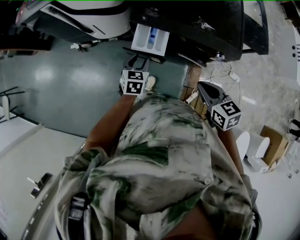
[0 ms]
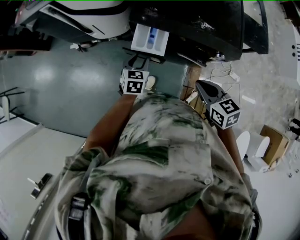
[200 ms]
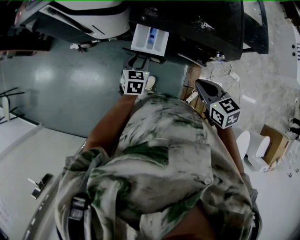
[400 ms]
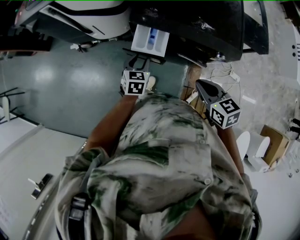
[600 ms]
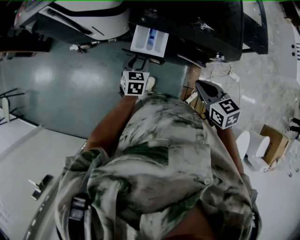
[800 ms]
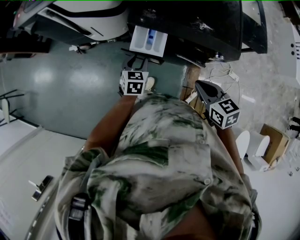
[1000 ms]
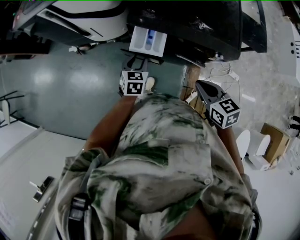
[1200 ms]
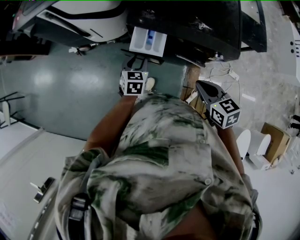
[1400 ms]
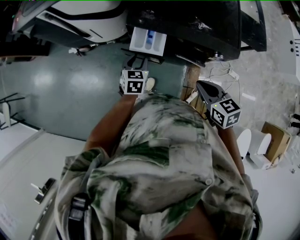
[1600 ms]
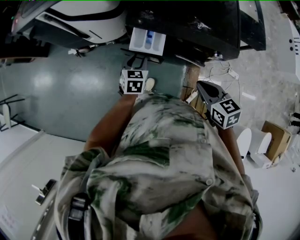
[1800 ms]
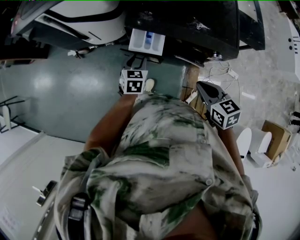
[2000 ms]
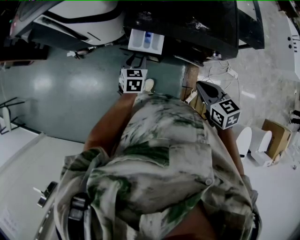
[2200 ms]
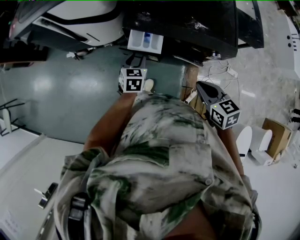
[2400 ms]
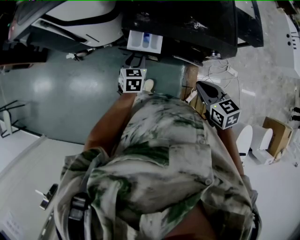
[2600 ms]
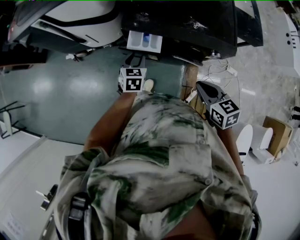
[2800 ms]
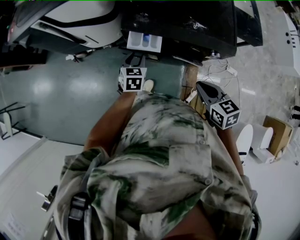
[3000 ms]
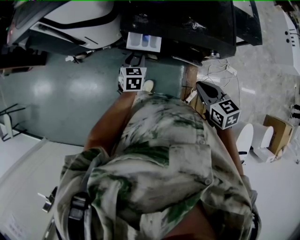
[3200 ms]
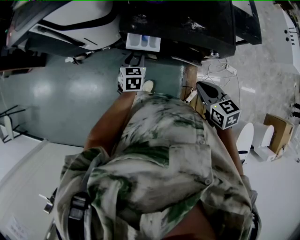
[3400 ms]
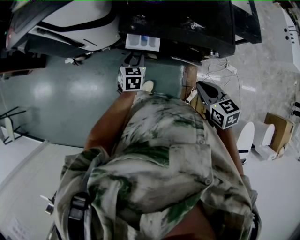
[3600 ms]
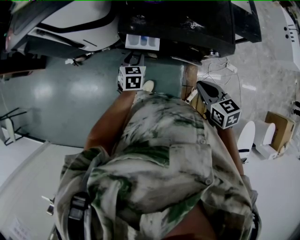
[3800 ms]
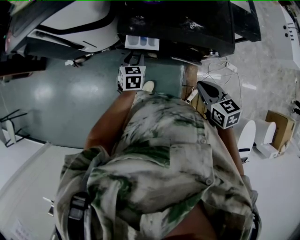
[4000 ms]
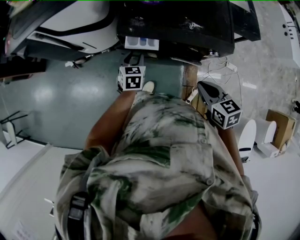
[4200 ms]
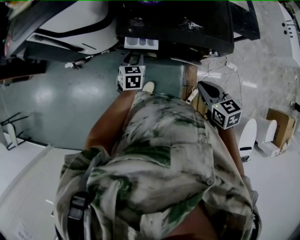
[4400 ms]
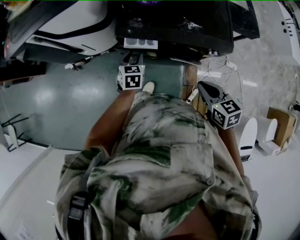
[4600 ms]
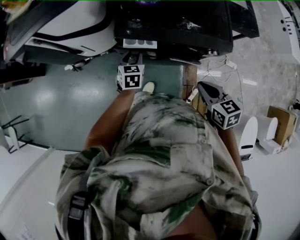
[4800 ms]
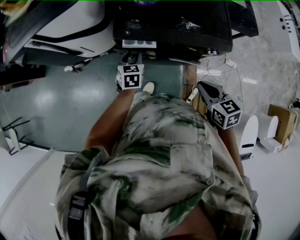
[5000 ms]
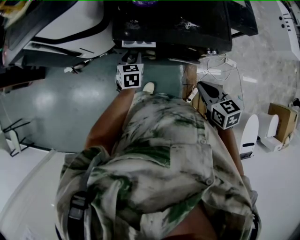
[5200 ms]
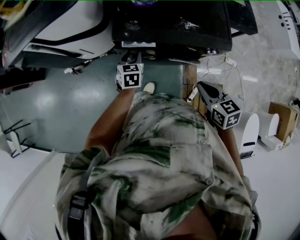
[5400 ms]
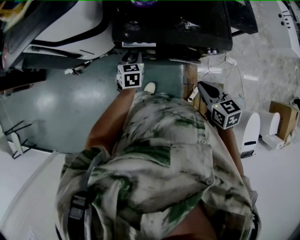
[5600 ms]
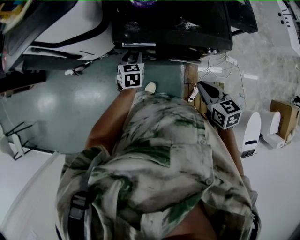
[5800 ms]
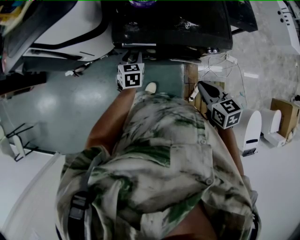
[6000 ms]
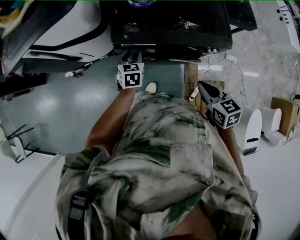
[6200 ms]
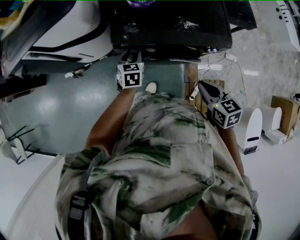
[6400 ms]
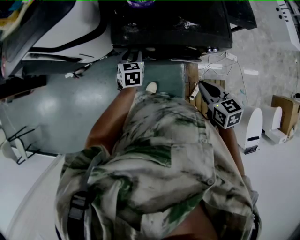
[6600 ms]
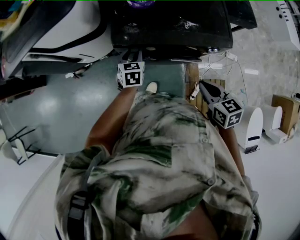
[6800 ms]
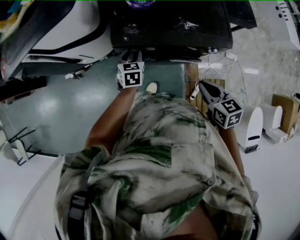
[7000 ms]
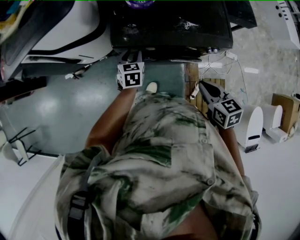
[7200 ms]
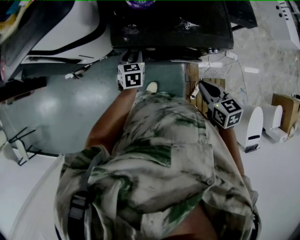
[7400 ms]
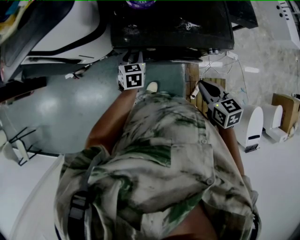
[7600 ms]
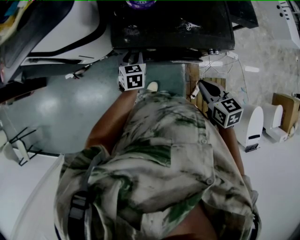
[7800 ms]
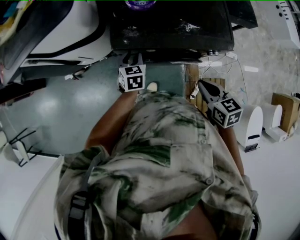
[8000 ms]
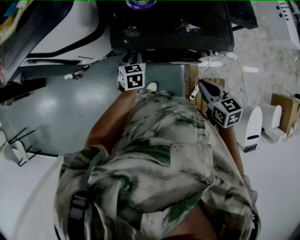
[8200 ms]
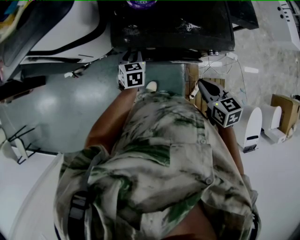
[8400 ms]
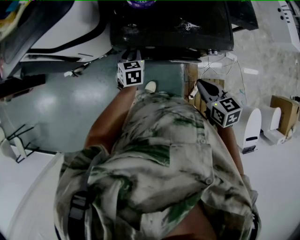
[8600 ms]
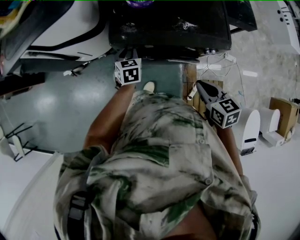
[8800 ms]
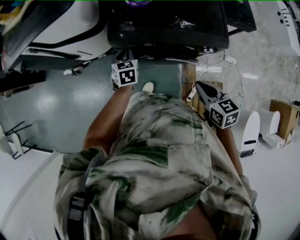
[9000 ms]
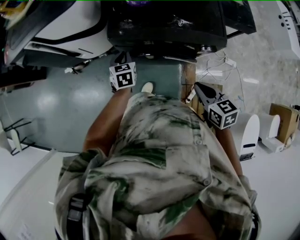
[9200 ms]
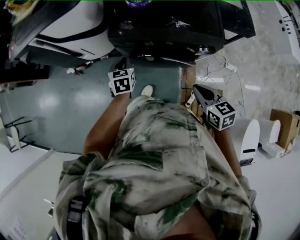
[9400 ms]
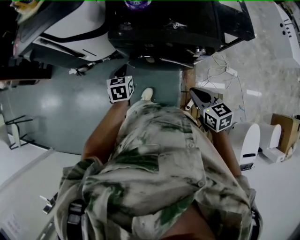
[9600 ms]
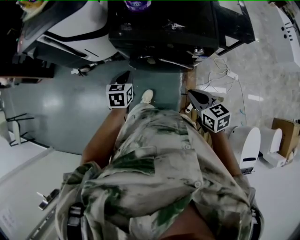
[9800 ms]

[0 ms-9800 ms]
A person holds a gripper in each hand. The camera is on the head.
0 ms to 1400 ms: The two grippers keep their place.
1400 ms to 4200 ms: There are only small adjustments of the grippers.
4200 ms to 5600 ms: The grippers make only small movements.
5600 ms to 8400 ms: The grippers make only small movements.
8400 ms to 9800 ms: The two grippers go about 20 cm backward. The left gripper closes.

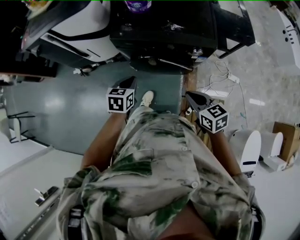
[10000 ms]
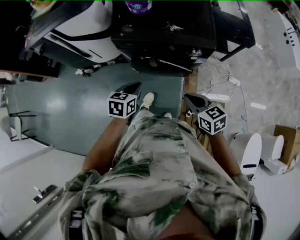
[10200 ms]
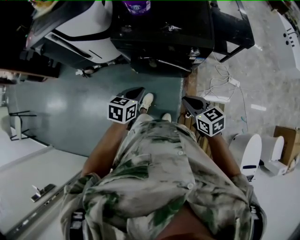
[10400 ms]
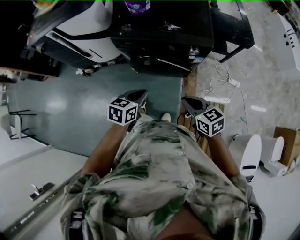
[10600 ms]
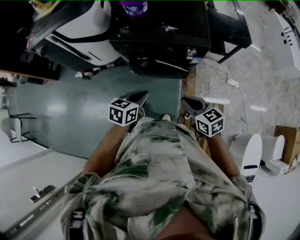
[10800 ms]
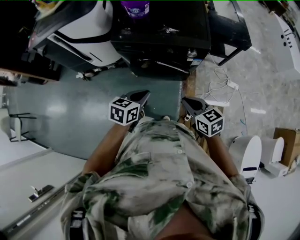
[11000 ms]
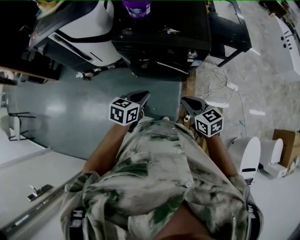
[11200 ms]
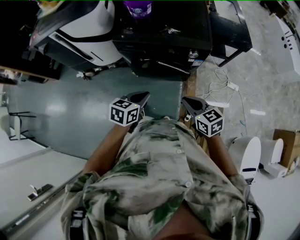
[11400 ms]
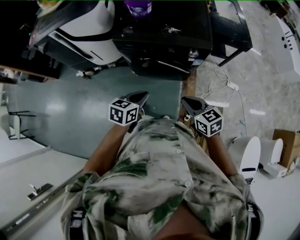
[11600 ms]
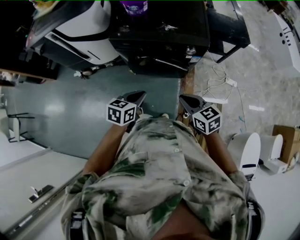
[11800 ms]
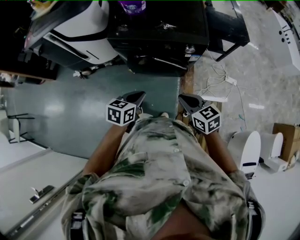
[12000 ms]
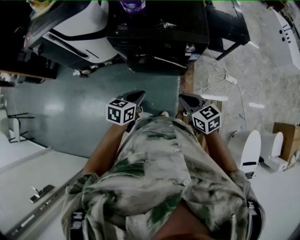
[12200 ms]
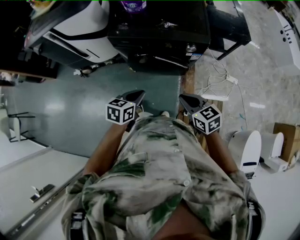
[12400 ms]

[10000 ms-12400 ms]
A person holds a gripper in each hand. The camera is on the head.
10000 ms to 11200 ms: The right gripper shifts approximately 5 cm backward. Meanwhile the left gripper goes about 15 cm backward and to the right.
11200 ms to 12400 ms: There are only small adjustments of the grippers.

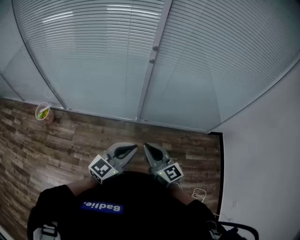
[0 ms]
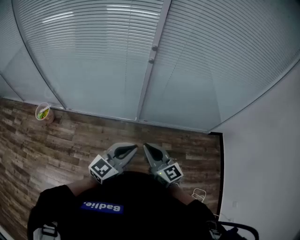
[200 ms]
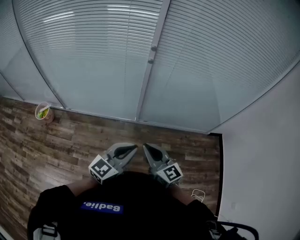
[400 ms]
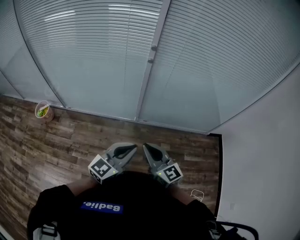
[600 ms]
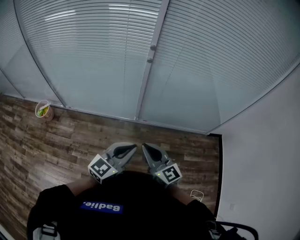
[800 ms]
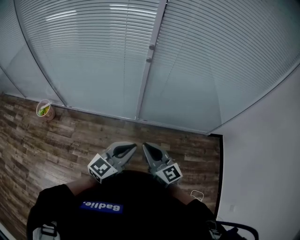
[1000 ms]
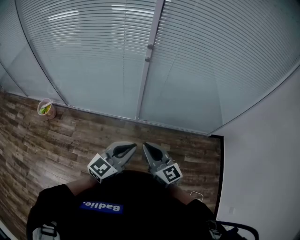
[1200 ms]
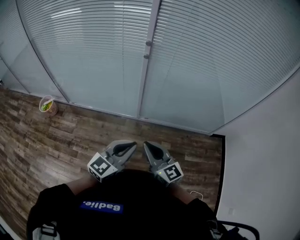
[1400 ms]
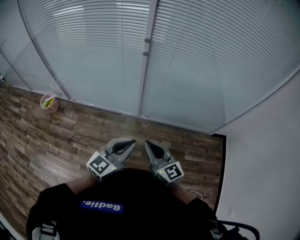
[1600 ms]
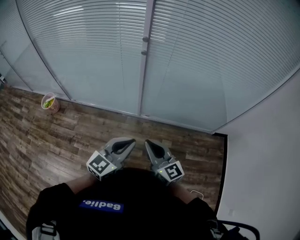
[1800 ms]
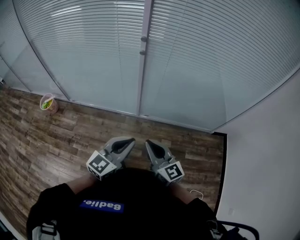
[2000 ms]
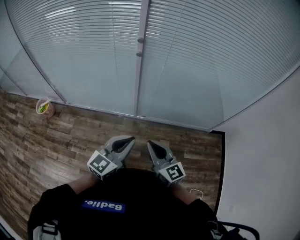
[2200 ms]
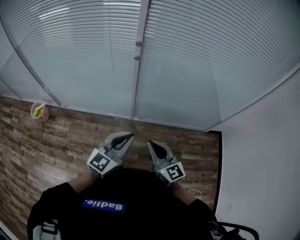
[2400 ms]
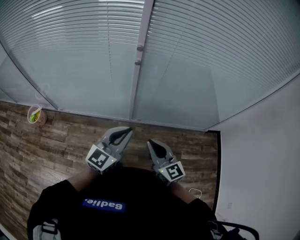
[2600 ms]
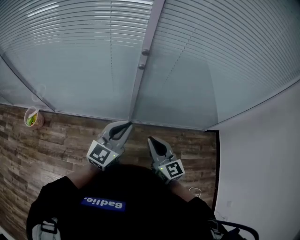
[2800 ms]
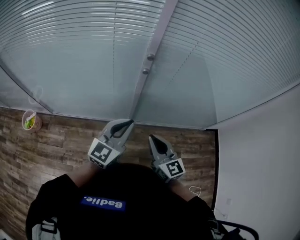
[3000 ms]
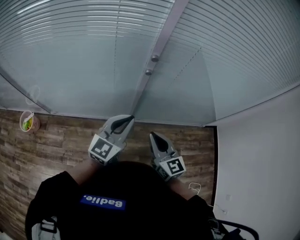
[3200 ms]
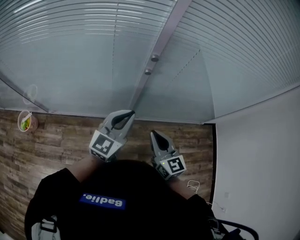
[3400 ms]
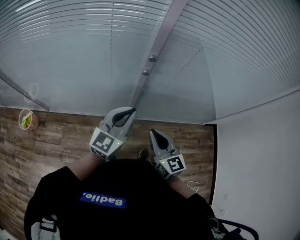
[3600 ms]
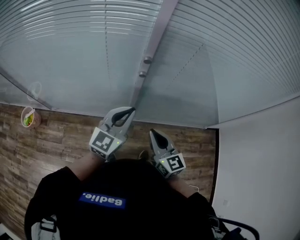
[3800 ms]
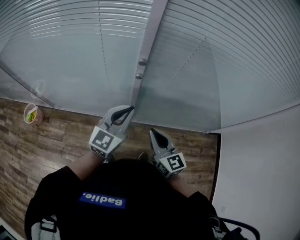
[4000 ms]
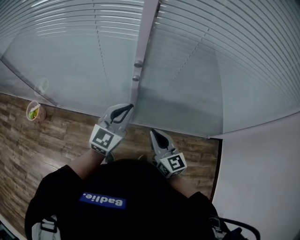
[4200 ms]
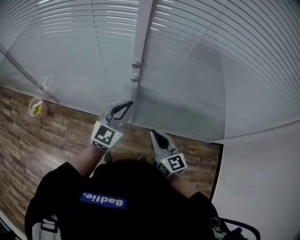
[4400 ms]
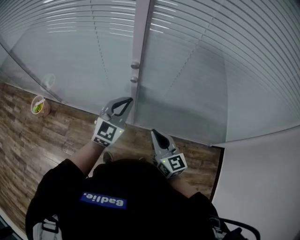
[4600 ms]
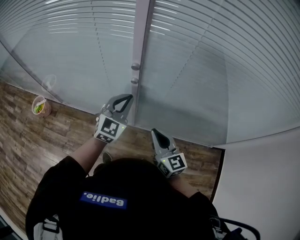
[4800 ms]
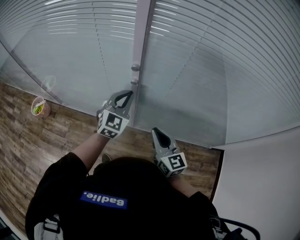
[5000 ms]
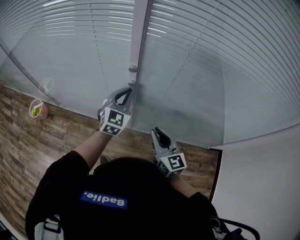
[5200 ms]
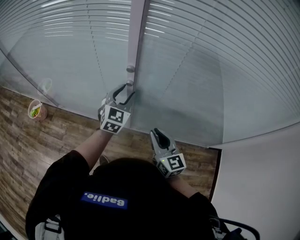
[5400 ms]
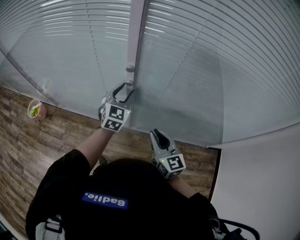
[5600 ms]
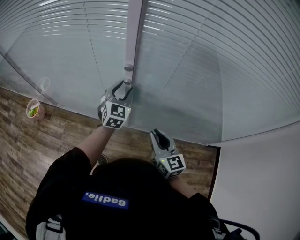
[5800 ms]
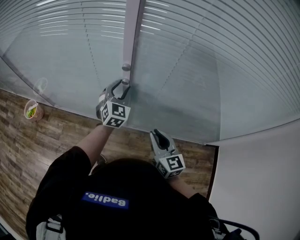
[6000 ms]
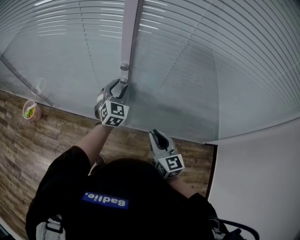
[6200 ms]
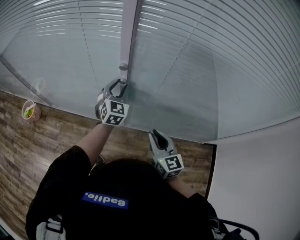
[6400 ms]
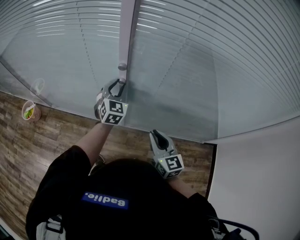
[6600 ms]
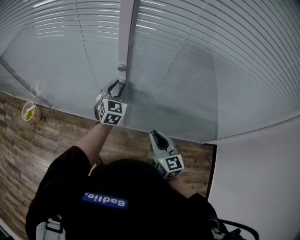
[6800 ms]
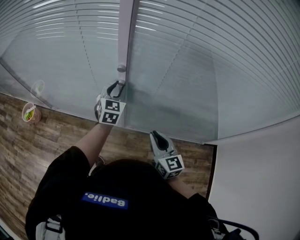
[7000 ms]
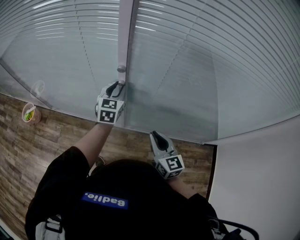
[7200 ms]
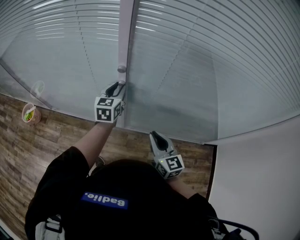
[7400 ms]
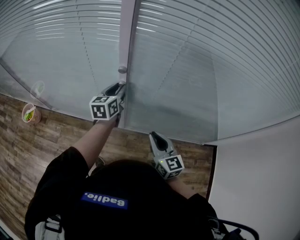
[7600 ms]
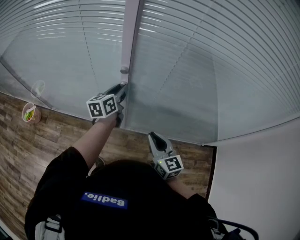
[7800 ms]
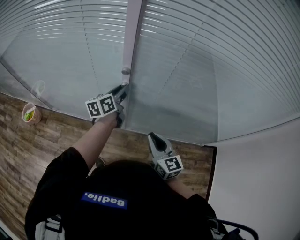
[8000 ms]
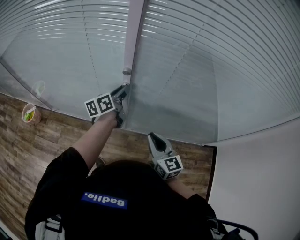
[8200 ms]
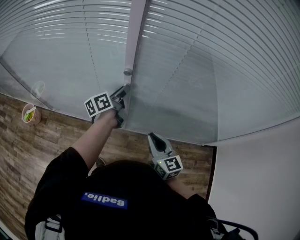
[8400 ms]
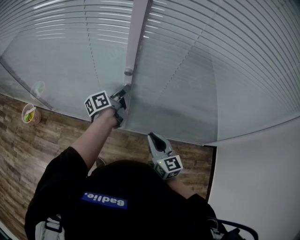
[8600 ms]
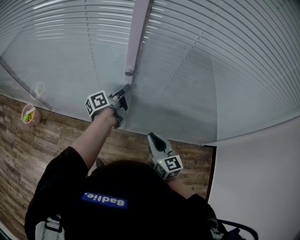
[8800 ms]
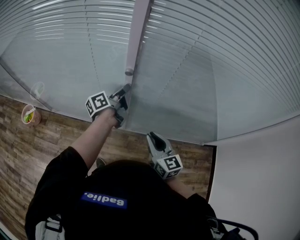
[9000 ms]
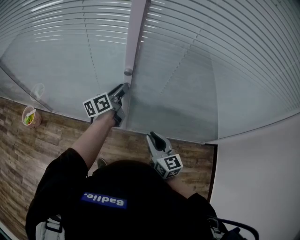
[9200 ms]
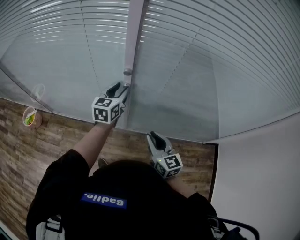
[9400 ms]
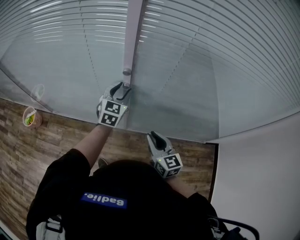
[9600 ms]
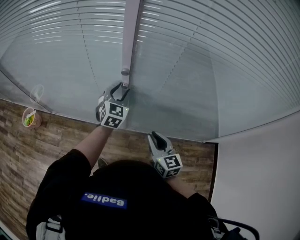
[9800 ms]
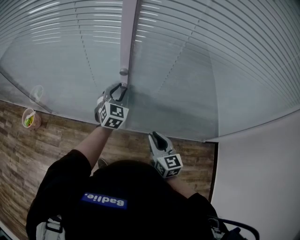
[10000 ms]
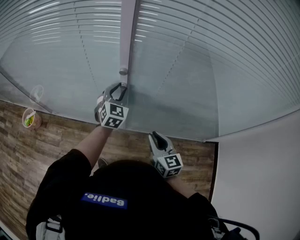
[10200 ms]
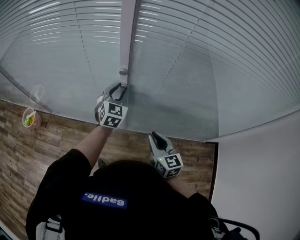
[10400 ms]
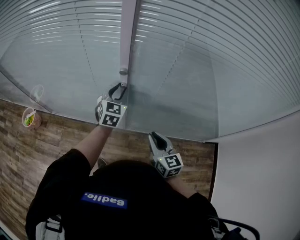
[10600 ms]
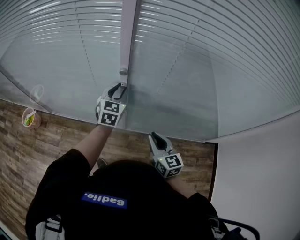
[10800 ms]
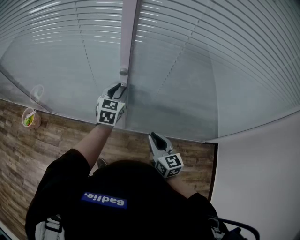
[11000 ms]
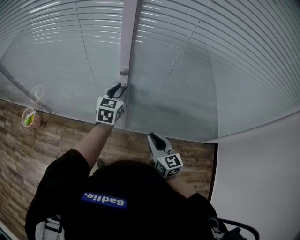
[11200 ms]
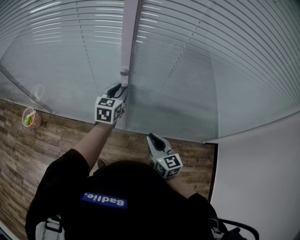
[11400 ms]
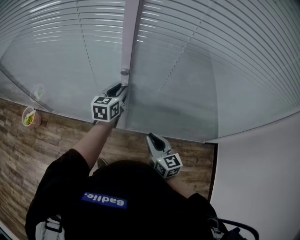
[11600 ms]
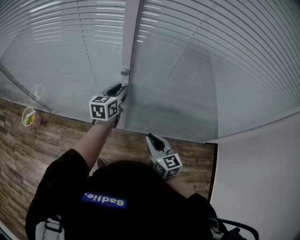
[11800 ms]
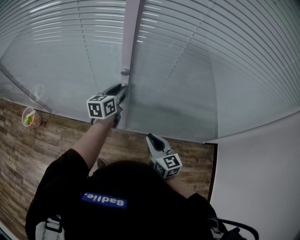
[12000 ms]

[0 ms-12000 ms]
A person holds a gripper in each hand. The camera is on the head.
0 ms to 1600 ms: Both grippers move to the right, some 10 cm.
1600 ms to 3000 ms: The grippers both shift forward by about 20 cm.
3000 ms to 4400 ms: The right gripper travels forward and to the right by about 10 cm, while the left gripper shifts roughly 15 cm forward.
4400 ms to 6000 ms: The left gripper shifts approximately 15 cm forward and downward, changes its angle by approximately 20 degrees, and opens its fingers.
6000 ms to 7600 ms: The left gripper rotates around the line of its fingers by about 40 degrees, counterclockwise from behind.
7600 ms to 9000 ms: The left gripper rolls counterclockwise, seen from behind, by approximately 50 degrees.
9000 ms to 10400 ms: The left gripper rolls clockwise, seen from behind, by some 90 degrees.
10400 ms to 12000 ms: The left gripper rolls counterclockwise, seen from behind, by some 40 degrees.
